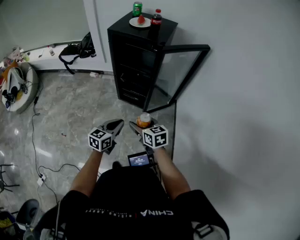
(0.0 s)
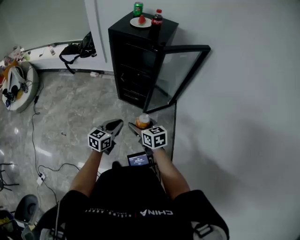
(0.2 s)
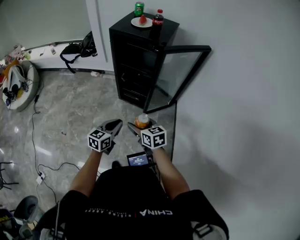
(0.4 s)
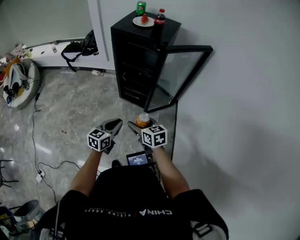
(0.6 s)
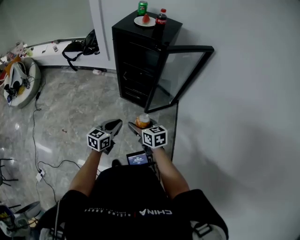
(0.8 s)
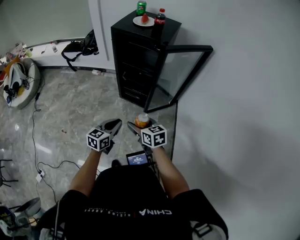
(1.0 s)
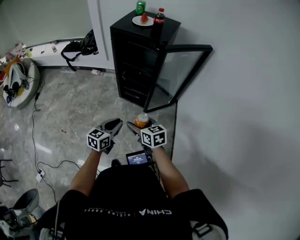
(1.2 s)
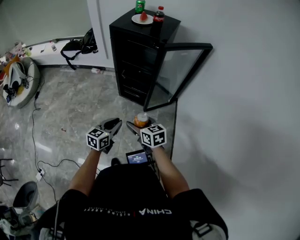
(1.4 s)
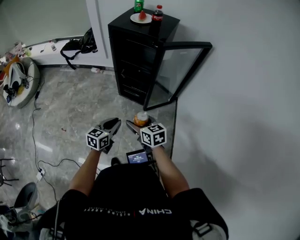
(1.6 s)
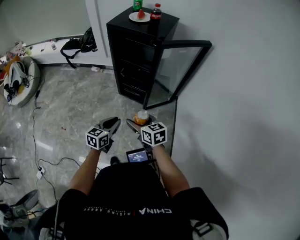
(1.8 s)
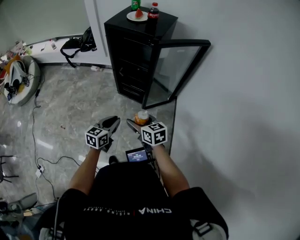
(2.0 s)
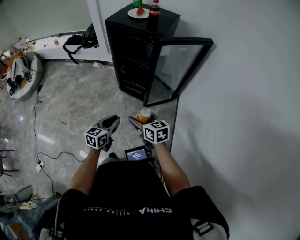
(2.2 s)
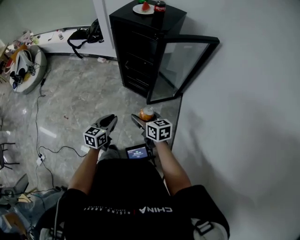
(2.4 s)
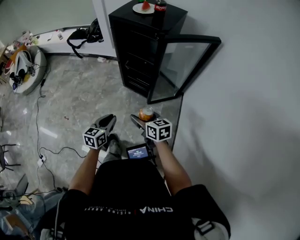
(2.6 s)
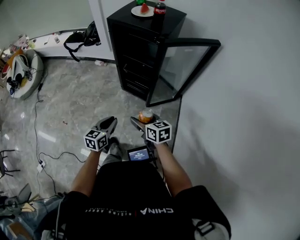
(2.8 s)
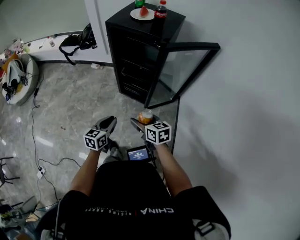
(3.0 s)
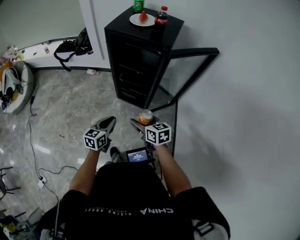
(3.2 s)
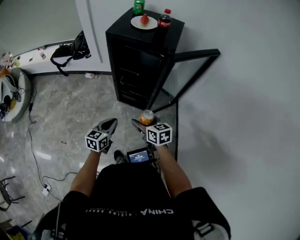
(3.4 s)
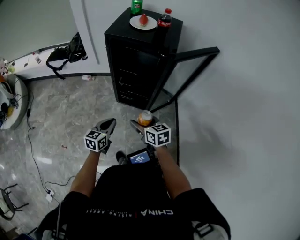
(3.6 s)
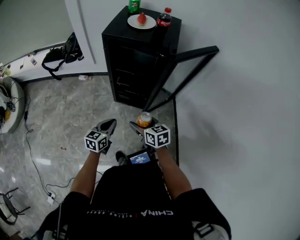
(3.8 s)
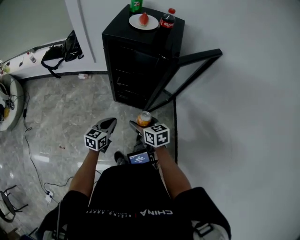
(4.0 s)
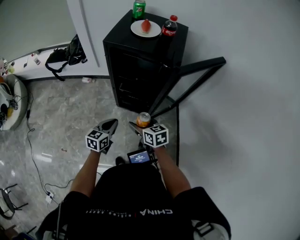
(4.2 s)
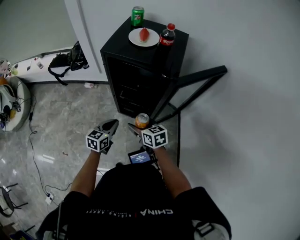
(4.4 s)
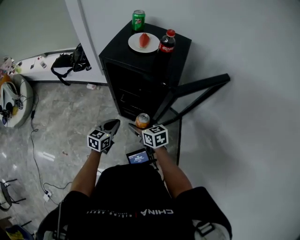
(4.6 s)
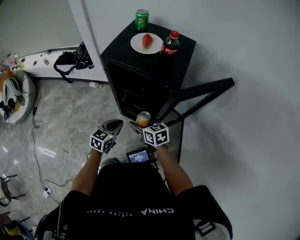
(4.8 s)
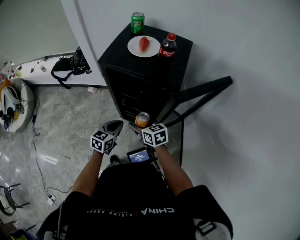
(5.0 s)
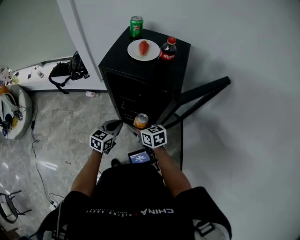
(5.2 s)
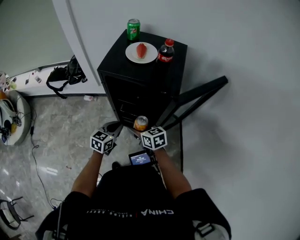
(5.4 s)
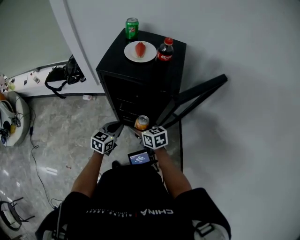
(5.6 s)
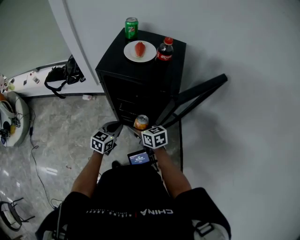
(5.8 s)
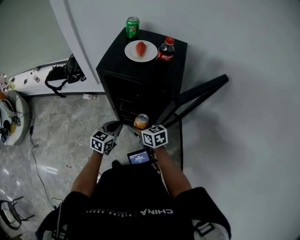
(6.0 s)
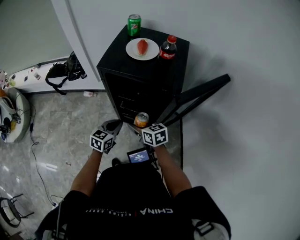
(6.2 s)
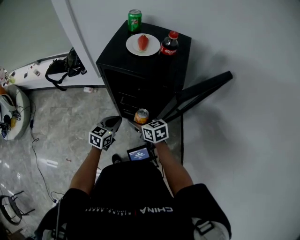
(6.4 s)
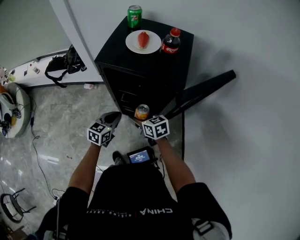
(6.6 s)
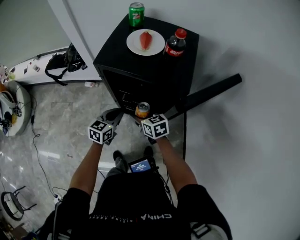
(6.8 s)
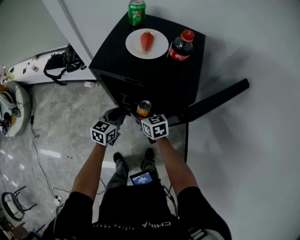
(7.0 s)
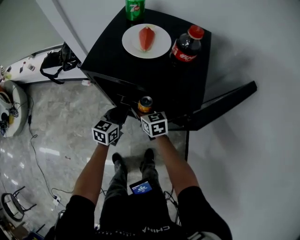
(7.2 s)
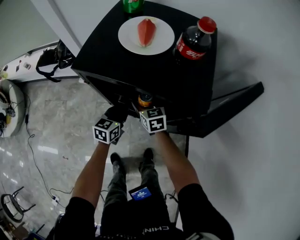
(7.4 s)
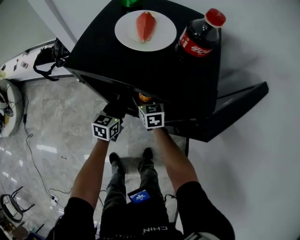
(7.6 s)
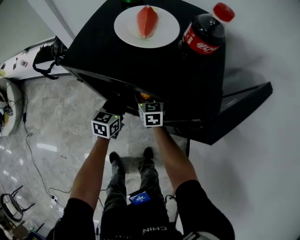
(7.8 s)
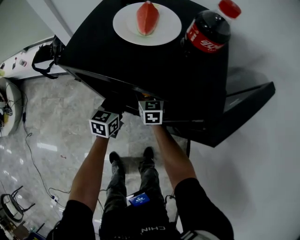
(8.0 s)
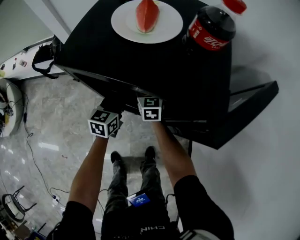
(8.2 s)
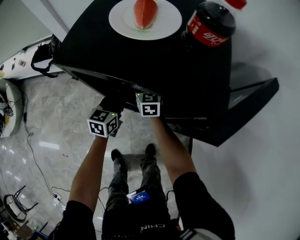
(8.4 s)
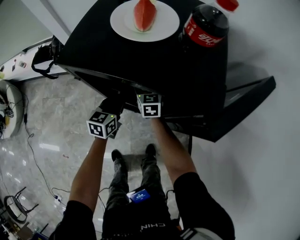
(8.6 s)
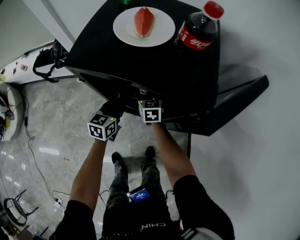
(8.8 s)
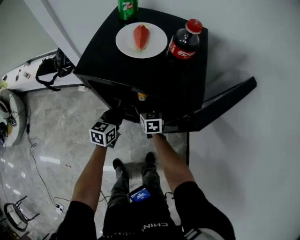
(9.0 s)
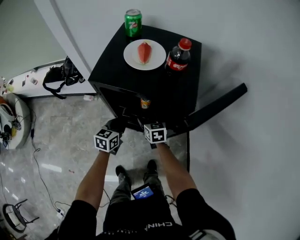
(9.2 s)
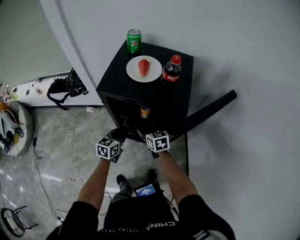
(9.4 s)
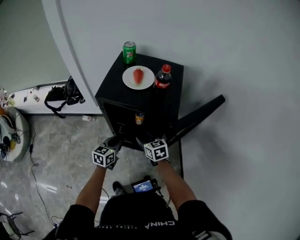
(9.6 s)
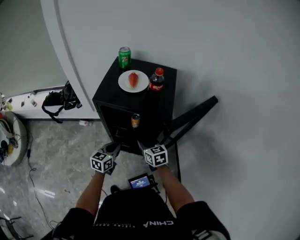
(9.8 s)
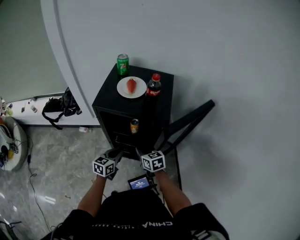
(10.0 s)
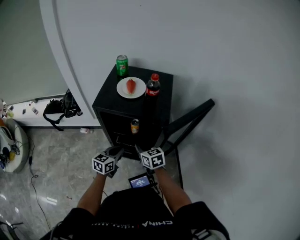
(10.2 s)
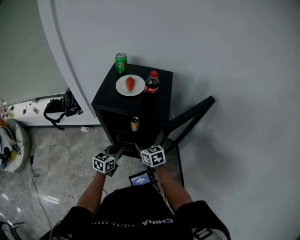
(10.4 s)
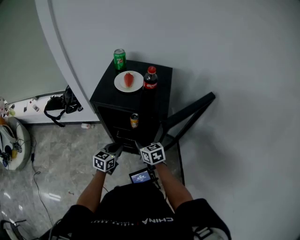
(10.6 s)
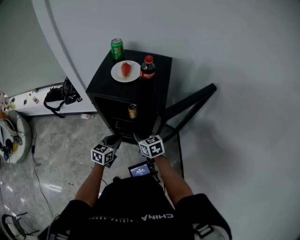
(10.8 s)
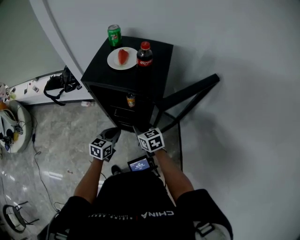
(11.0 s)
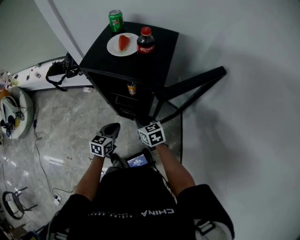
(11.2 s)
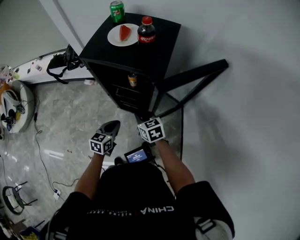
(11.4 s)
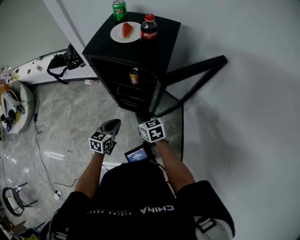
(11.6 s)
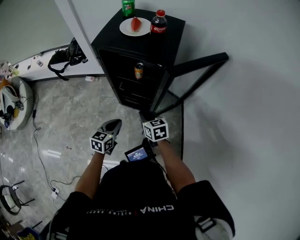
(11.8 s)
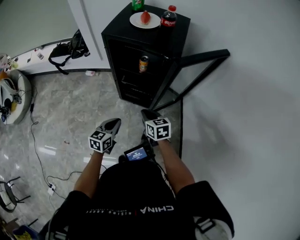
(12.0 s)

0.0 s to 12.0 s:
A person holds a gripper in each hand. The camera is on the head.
0.0 to 1.6 s: There are only small adjustments of the grippers.
1.6 to 3.0 s: Both grippers travel together forward, roughly 5 cm.
3.0 to 4.4 s: Both grippers travel together forward, approximately 20 cm.
4.4 to 6.0 s: Both grippers travel together forward, some 10 cm.
6.0 to 7.6 s: Both grippers travel together forward and downward, roughly 25 cm. The right gripper changes its angle by some 20 degrees.
7.6 to 9.0 s: The left gripper changes place by roughly 5 cm.
9.0 to 10.4 s: The left gripper travels backward and upward by about 15 cm. The right gripper goes roughly 25 cm upward and backward, and closes its fingers.
10.4 to 12.0 s: The grippers both shift backward by about 20 cm.

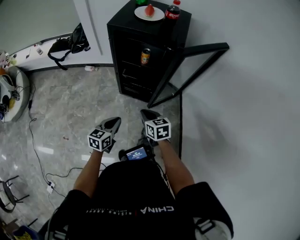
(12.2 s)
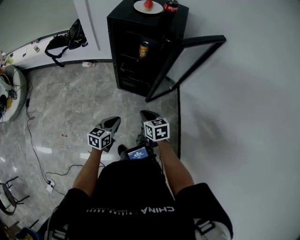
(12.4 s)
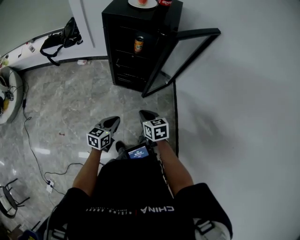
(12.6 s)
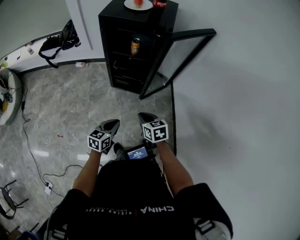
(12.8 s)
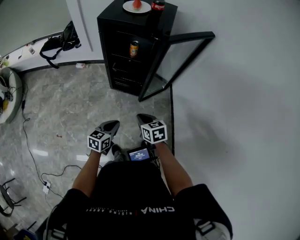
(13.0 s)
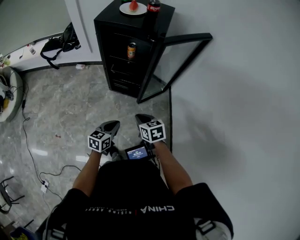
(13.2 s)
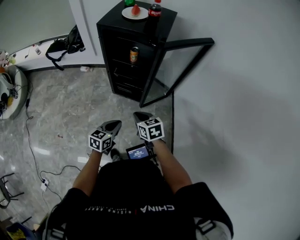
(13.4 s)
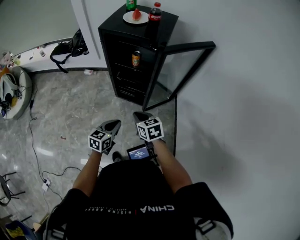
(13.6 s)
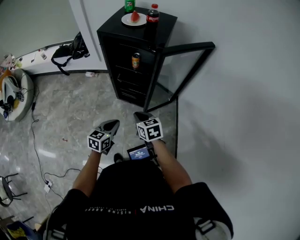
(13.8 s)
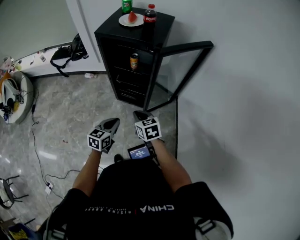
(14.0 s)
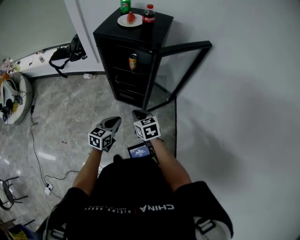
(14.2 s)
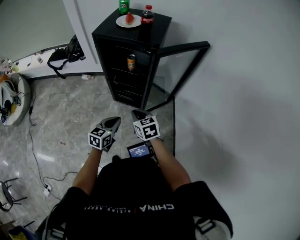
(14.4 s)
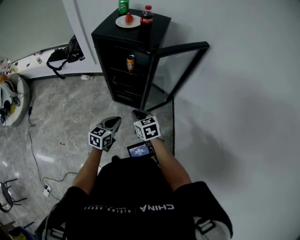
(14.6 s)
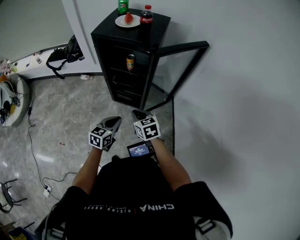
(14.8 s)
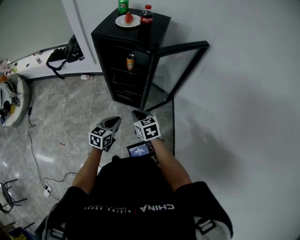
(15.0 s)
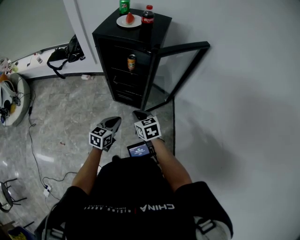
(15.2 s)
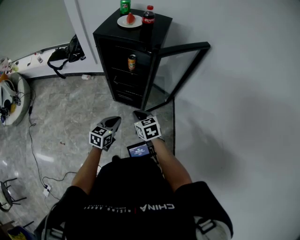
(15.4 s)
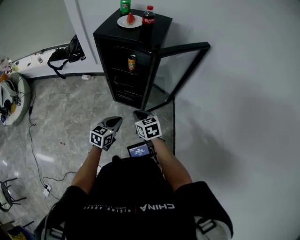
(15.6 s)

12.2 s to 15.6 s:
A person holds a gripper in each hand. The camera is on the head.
12.2 to 13.8 s: Both grippers travel together to the right, approximately 5 cm. The right gripper reaches roughly 10 cm backward, then returns.
13.8 to 15.6 s: There are only small adjustments of the grippers.

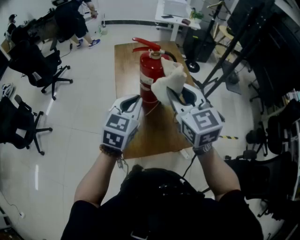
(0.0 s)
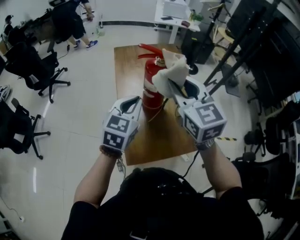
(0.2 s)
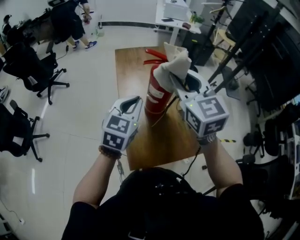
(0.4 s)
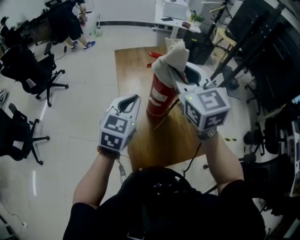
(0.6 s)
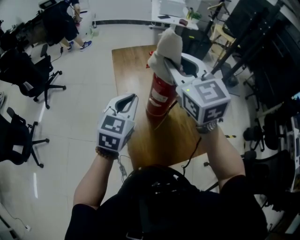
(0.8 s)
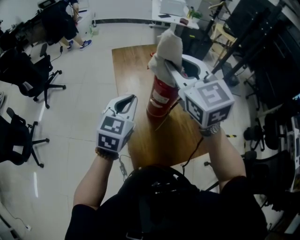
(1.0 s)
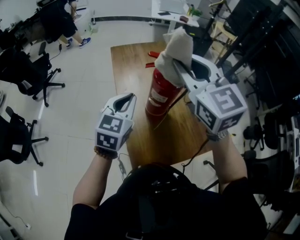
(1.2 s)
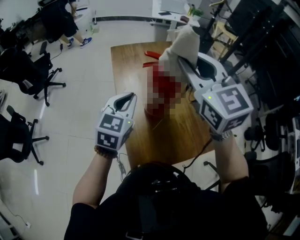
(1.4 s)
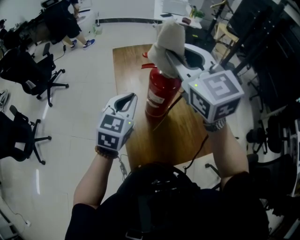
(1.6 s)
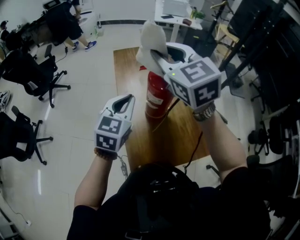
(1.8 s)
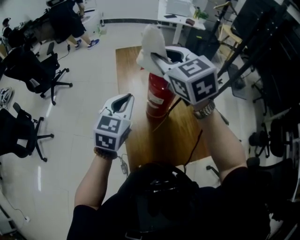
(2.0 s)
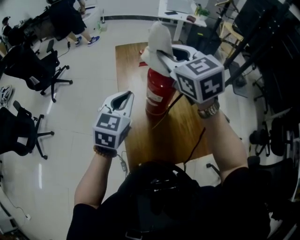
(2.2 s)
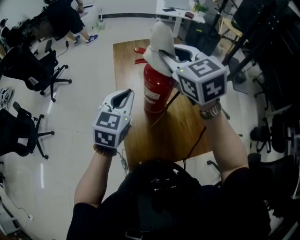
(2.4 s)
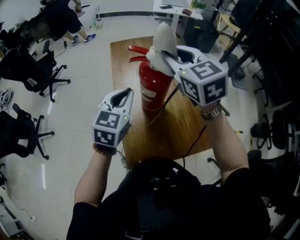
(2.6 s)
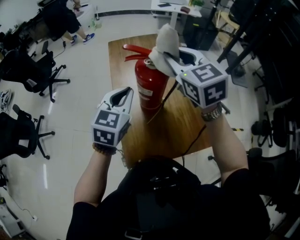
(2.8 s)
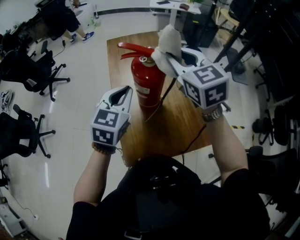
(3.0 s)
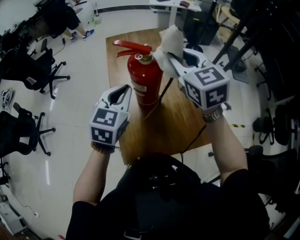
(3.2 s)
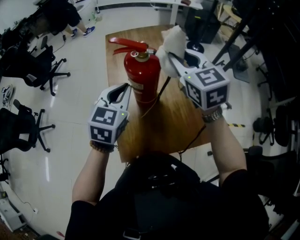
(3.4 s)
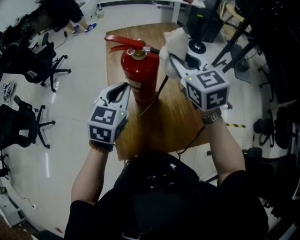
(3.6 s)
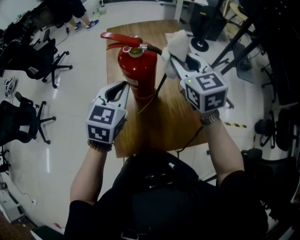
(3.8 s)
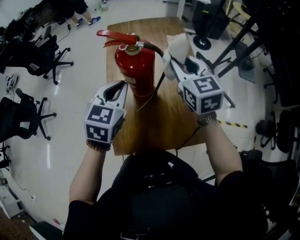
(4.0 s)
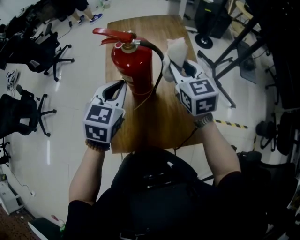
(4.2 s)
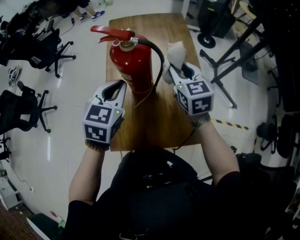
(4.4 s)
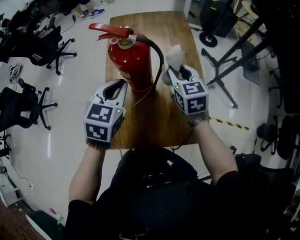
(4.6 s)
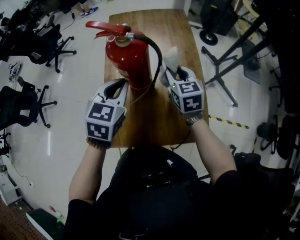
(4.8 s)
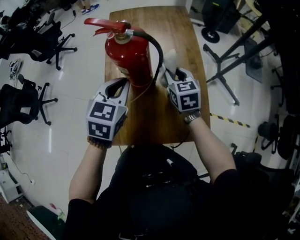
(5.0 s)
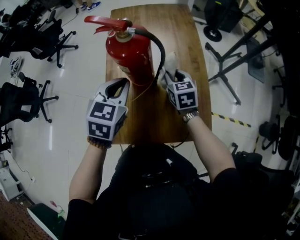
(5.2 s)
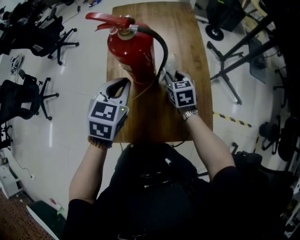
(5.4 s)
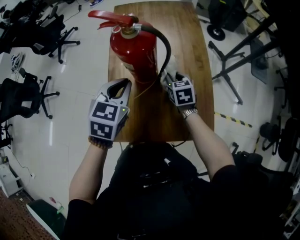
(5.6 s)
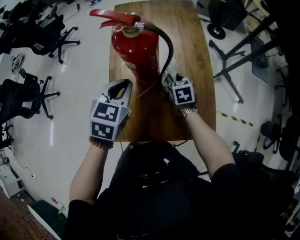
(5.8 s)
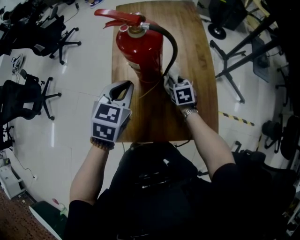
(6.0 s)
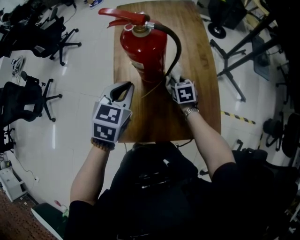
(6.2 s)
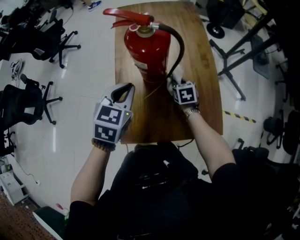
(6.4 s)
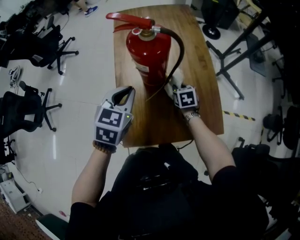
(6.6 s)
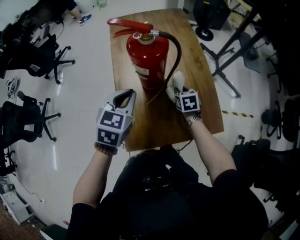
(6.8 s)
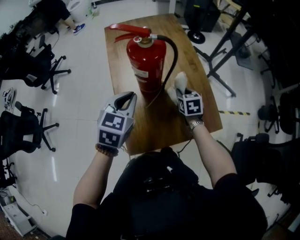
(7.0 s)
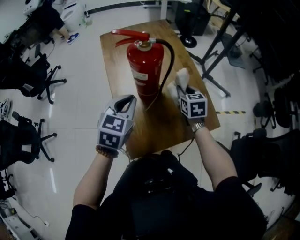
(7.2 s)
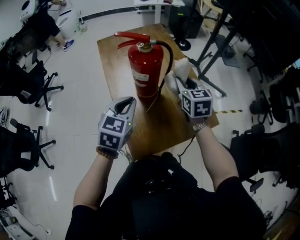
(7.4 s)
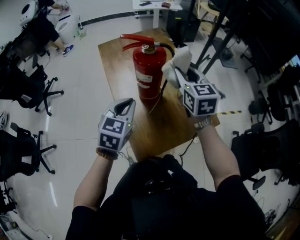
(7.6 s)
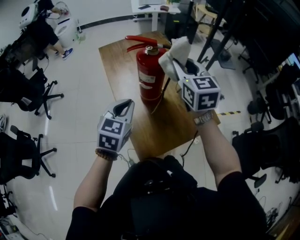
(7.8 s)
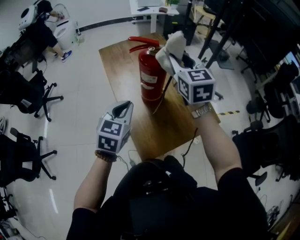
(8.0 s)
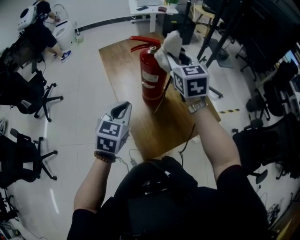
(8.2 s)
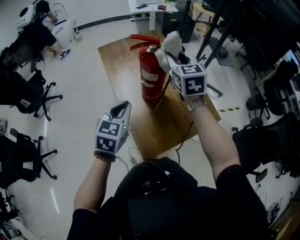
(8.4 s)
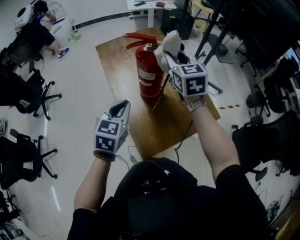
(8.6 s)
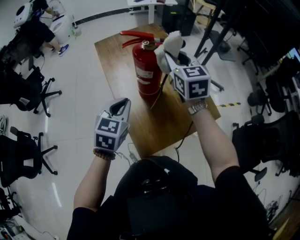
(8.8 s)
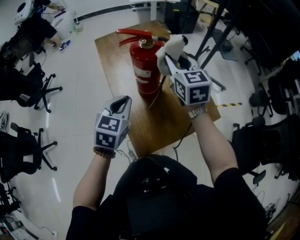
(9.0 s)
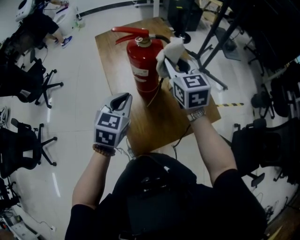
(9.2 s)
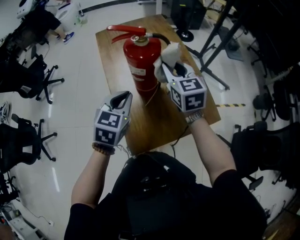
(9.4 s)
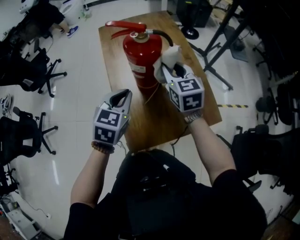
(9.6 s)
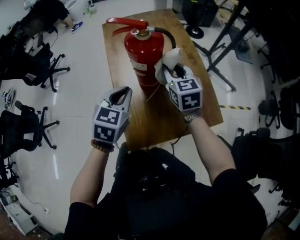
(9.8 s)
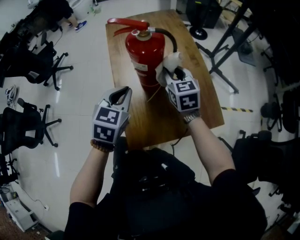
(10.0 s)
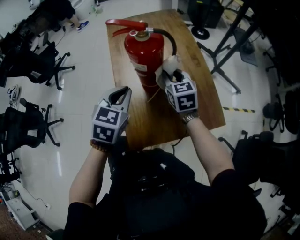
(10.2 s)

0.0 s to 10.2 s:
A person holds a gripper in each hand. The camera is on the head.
0.0 to 1.4 s: The left gripper is displaced forward and to the left by some 15 cm. The right gripper is displaced forward, upward and to the left by about 15 cm.
1.4 to 3.0 s: The left gripper travels to the right by some 5 cm, while the right gripper moves downward and to the right, roughly 10 cm.
3.0 to 4.4 s: The right gripper is displaced downward and to the right by roughly 15 cm, while the left gripper ends up roughly 5 cm from where it was.
4.4 to 5.8 s: The left gripper moves downward, some 5 cm. The right gripper is displaced downward by some 20 cm, and turns by approximately 20 degrees.
5.8 to 7.2 s: The right gripper shifts some 10 cm upward and backward, and changes its angle by some 20 degrees. Meanwhile the left gripper changes place by some 5 cm.
7.2 to 8.8 s: The right gripper heads upward and to the left, covering about 20 cm, and rotates some 20 degrees.
8.8 to 10.2 s: The right gripper travels downward by roughly 15 cm; the left gripper ends up approximately 5 cm from where it was.
